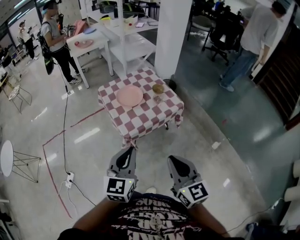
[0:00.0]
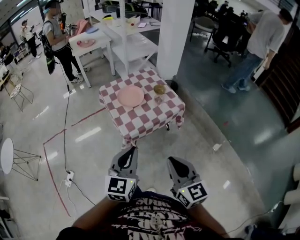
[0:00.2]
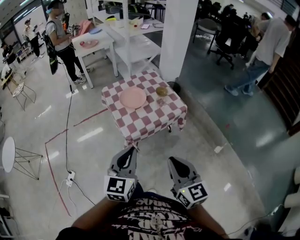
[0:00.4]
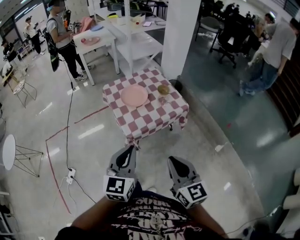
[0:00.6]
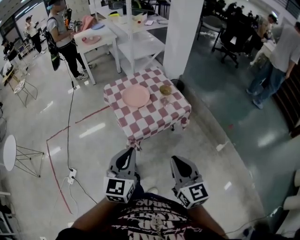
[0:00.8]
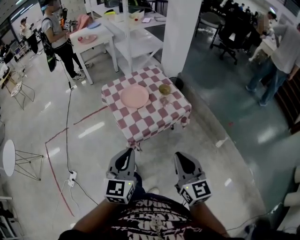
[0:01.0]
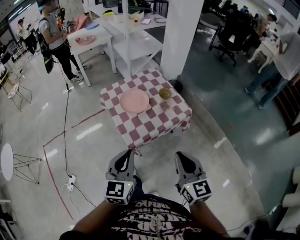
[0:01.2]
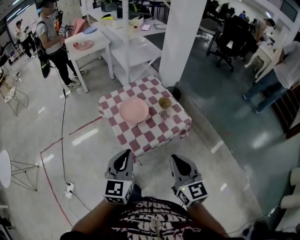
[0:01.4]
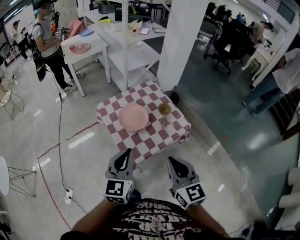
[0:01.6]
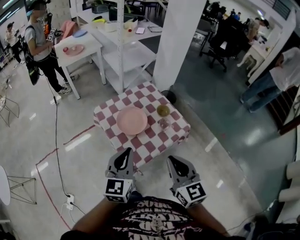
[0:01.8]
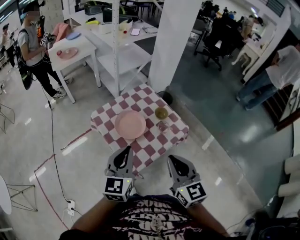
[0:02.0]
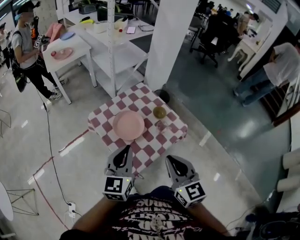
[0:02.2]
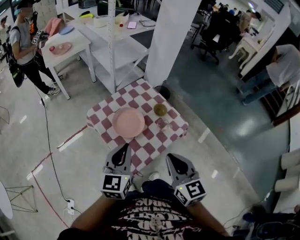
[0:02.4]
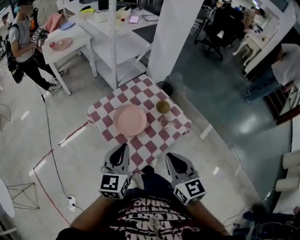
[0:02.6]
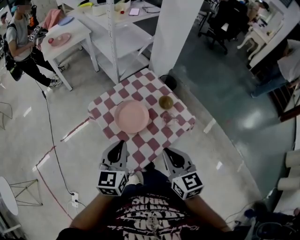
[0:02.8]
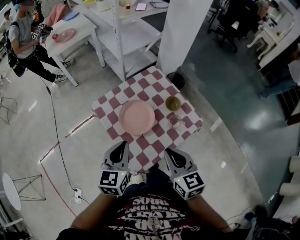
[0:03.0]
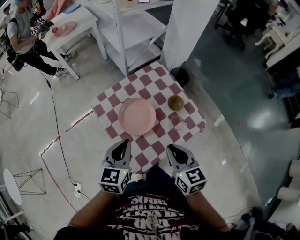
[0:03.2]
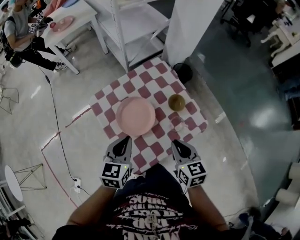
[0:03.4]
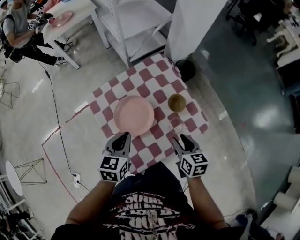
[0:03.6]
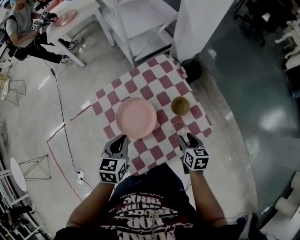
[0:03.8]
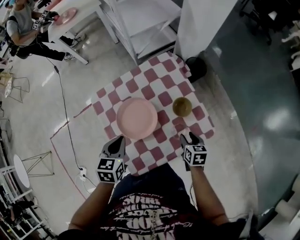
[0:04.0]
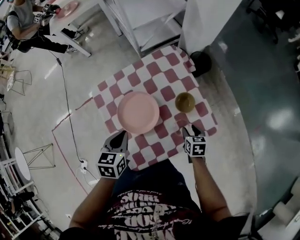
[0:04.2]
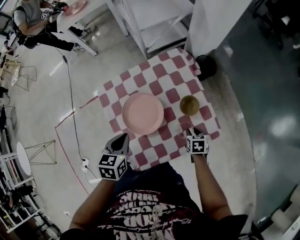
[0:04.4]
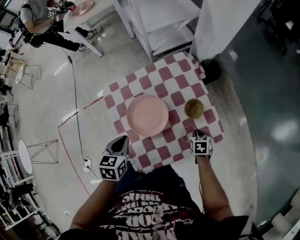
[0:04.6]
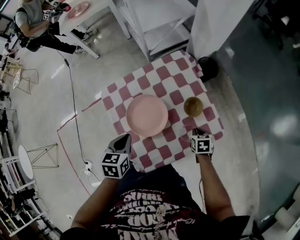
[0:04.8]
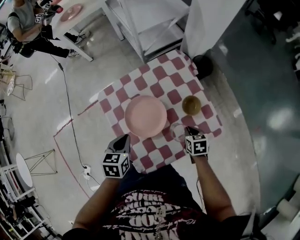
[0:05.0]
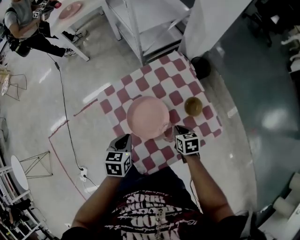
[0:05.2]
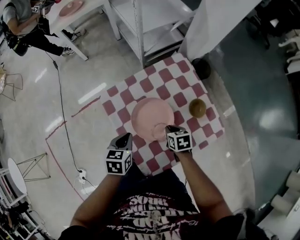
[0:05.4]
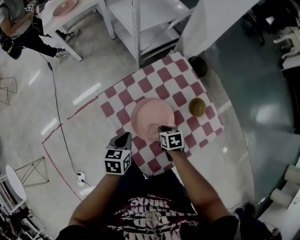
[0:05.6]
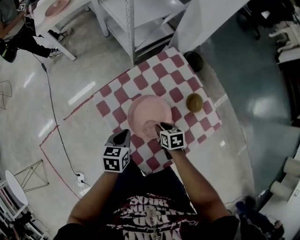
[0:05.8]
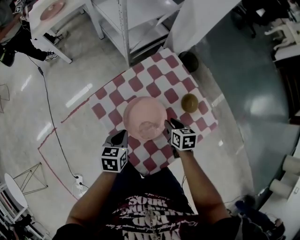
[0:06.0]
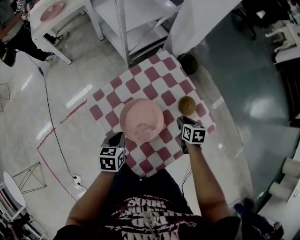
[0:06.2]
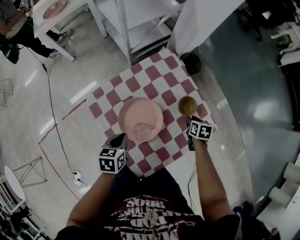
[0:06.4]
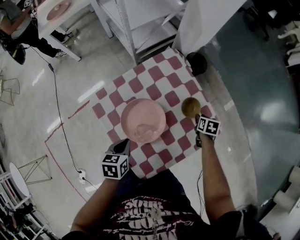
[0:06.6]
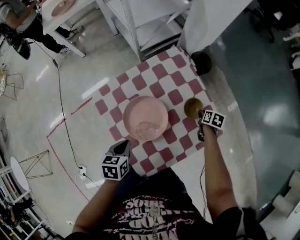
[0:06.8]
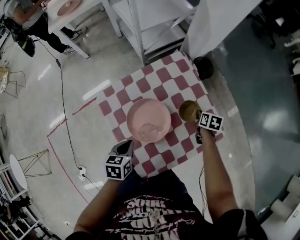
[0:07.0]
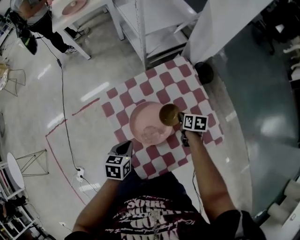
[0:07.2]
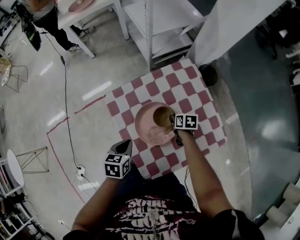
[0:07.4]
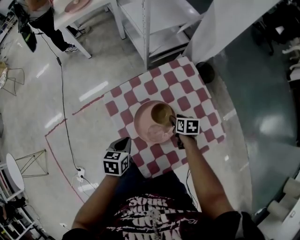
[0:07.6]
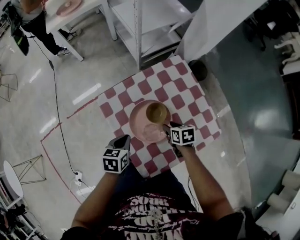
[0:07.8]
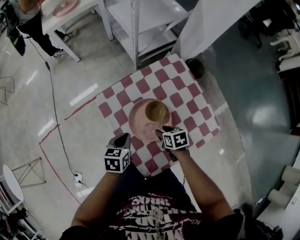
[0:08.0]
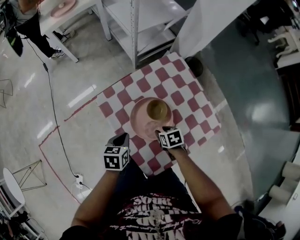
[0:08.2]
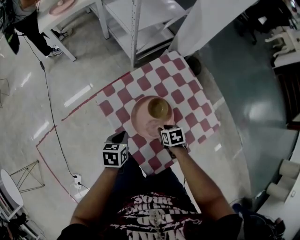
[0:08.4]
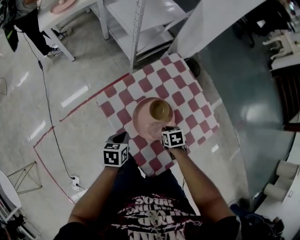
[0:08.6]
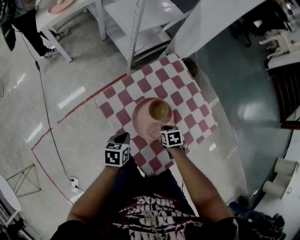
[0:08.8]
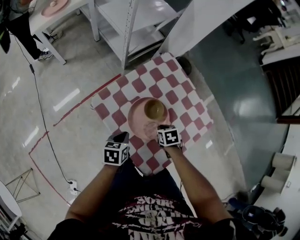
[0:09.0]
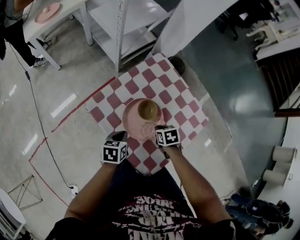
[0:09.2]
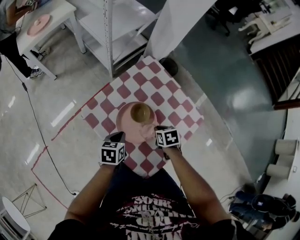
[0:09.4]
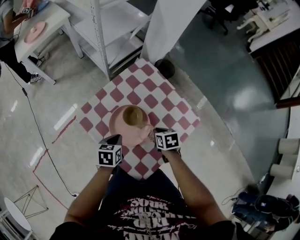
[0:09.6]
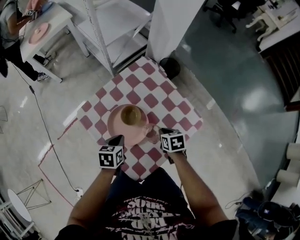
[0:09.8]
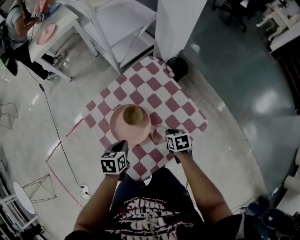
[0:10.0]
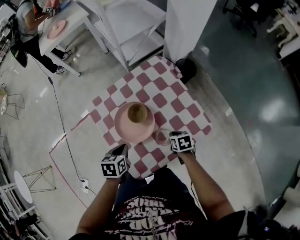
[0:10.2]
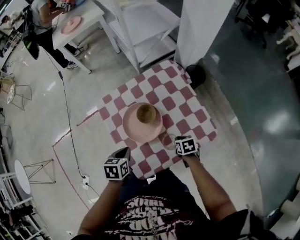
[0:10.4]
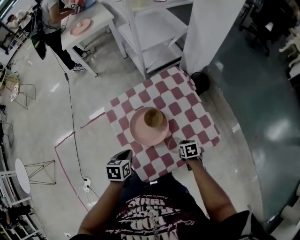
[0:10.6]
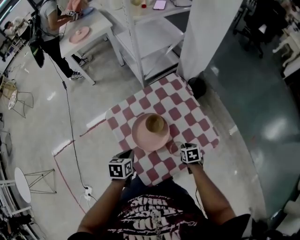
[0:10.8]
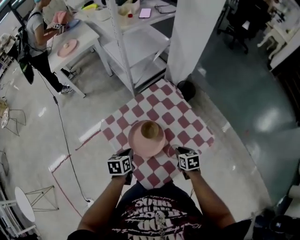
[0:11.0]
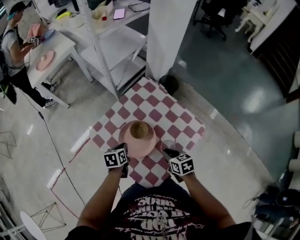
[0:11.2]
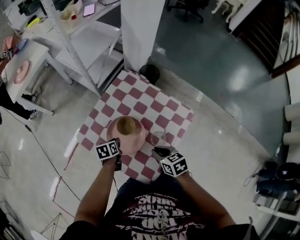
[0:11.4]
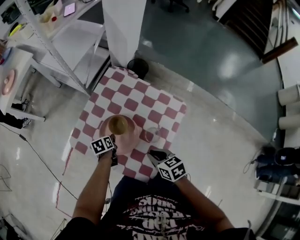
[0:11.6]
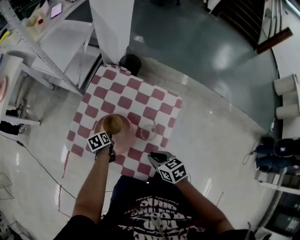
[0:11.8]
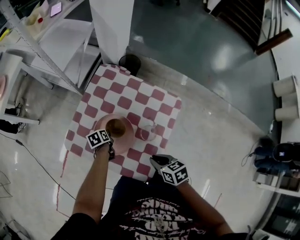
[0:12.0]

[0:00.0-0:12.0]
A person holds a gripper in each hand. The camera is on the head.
0:00.0 to 0:01.6: Both grippers move forward, roughly 20 cm.
0:01.6 to 0:03.0: The grippers both shift forward and downward by approximately 20 cm.
0:03.0 to 0:04.4: The right gripper goes roughly 40 cm downward, to the right and forward, tilts its fingers approximately 40 degrees downward, and opens up. Meanwhile the left gripper heads downward and forward, covering about 15 cm, and changes its angle by approximately 30 degrees.
0:04.4 to 0:06.0: The left gripper is displaced downward, to the left and forward by about 10 cm. Meanwhile the right gripper travels to the left and upward by some 20 cm, and closes, then reopens.
0:06.0 to 0:07.6: The right gripper moves downward, some 5 cm, and closes and opens again.
0:07.6 to 0:09.0: The right gripper moves about 10 cm, and closes up.
0:09.0 to 0:10.4: The left gripper moves roughly 15 cm, while the right gripper ends up about 15 cm from where it was.
0:10.4 to 0:12.0: The left gripper ends up about 25 cm from where it was, turns by about 20 degrees, and opens, then closes once more, while the right gripper shifts by about 20 cm, and turns by roughly 30 degrees.

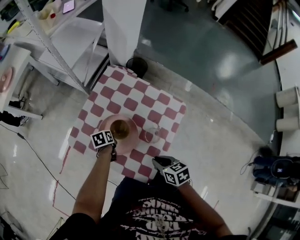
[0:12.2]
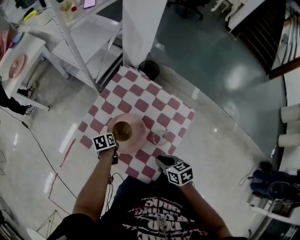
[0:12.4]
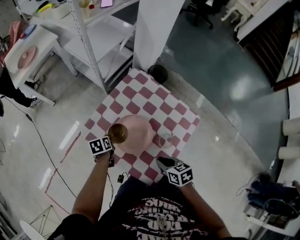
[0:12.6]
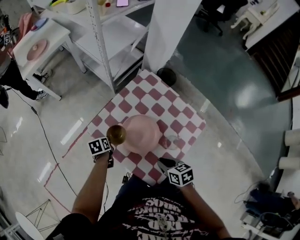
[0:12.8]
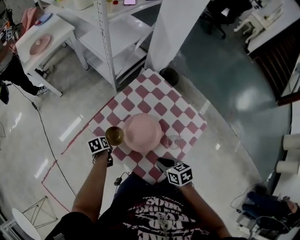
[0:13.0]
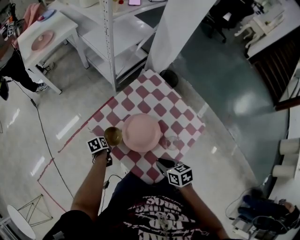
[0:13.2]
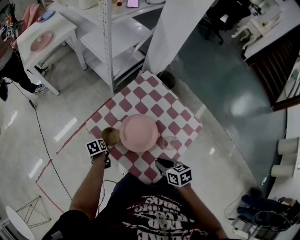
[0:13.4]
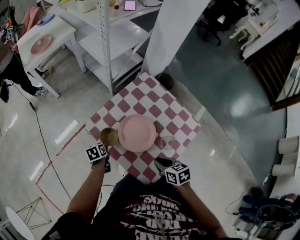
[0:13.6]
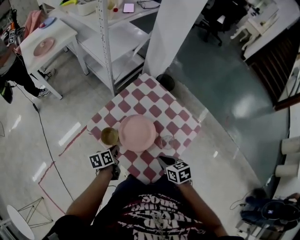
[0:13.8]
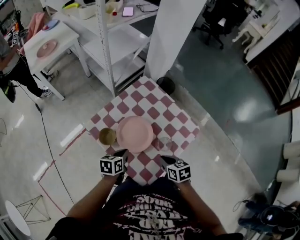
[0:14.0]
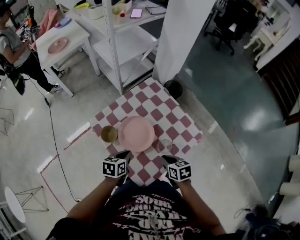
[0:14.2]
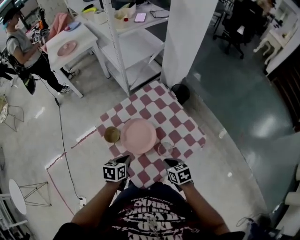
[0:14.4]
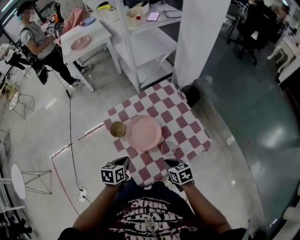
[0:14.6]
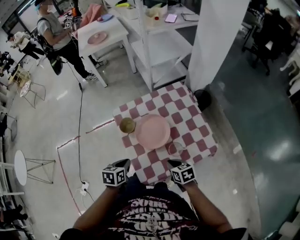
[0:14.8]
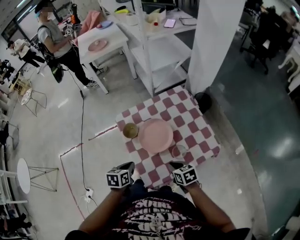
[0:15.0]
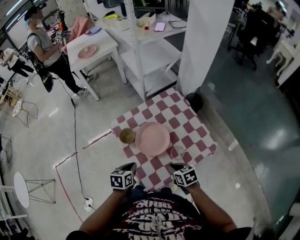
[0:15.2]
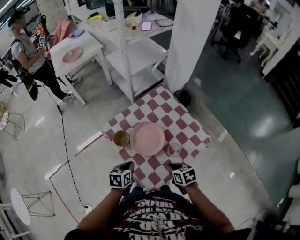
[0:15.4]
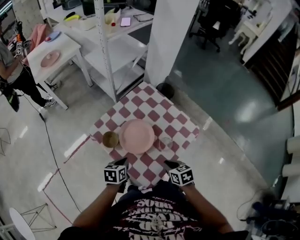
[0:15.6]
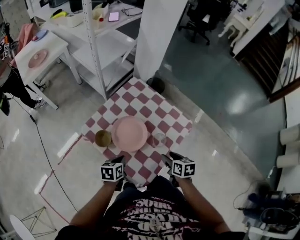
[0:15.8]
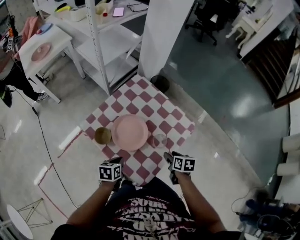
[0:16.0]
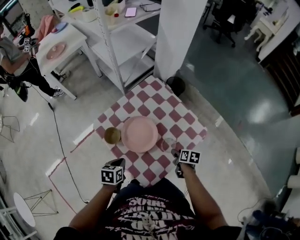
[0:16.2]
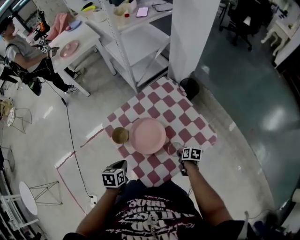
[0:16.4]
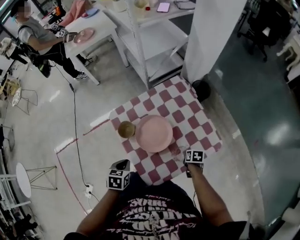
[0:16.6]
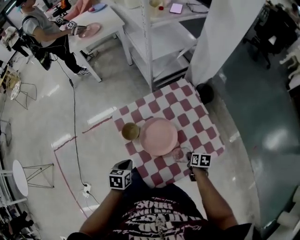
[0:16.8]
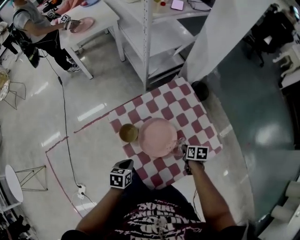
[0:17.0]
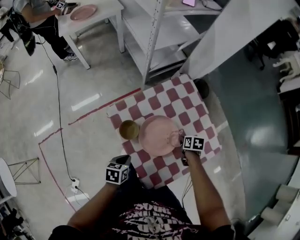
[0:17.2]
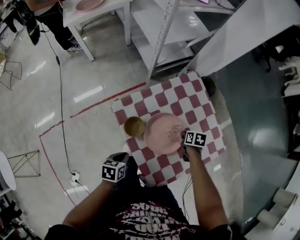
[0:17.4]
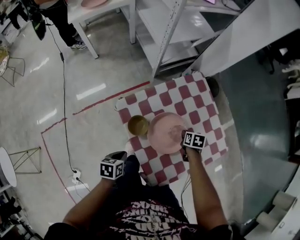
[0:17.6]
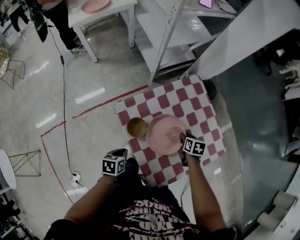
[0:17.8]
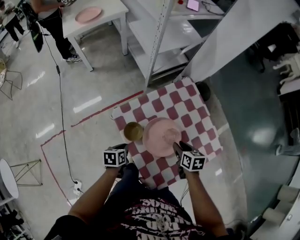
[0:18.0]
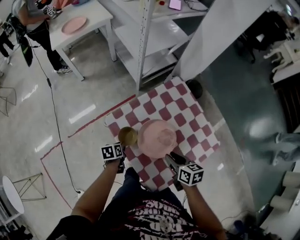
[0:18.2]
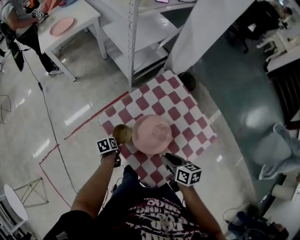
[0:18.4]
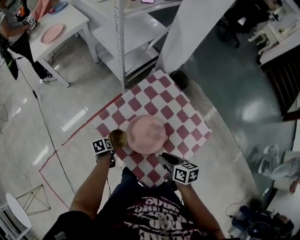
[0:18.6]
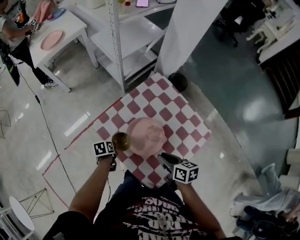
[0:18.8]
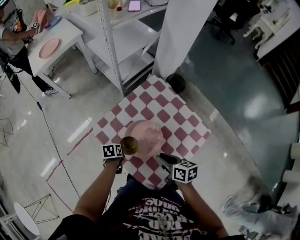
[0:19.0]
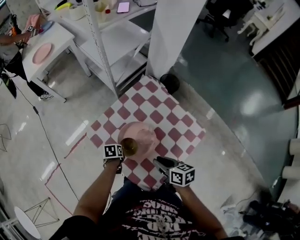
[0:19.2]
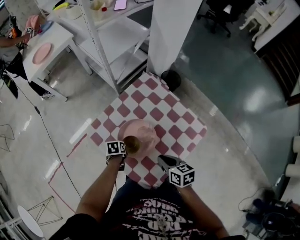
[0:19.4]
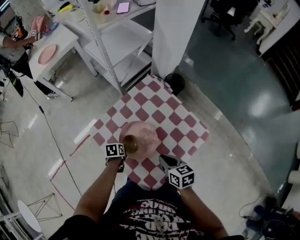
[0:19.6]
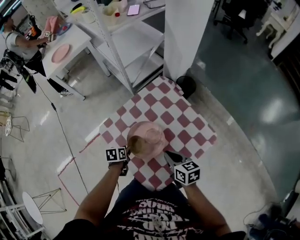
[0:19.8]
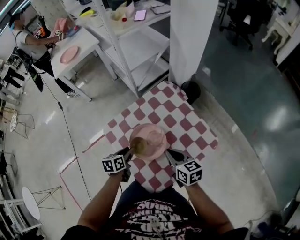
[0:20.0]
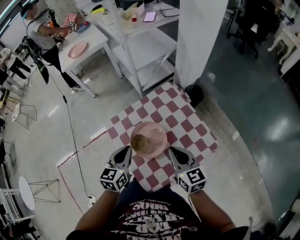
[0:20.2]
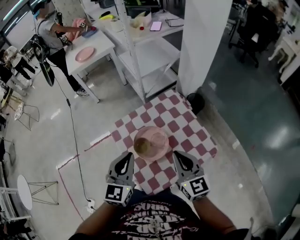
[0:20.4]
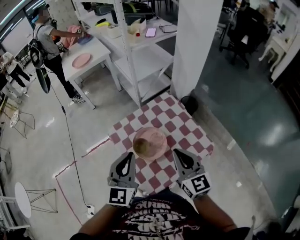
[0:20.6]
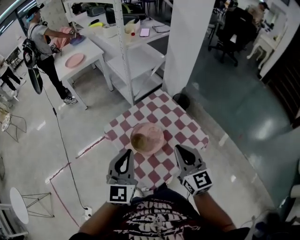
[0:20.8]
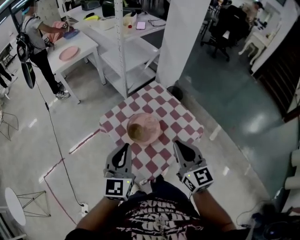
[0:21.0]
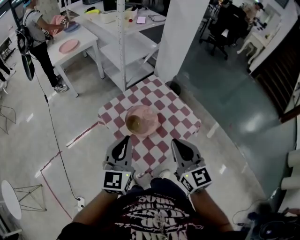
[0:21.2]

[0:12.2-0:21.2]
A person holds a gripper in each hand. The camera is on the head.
0:12.2 to 0:13.8: The left gripper heads to the left, upward and backward, covering approximately 15 cm, turns by approximately 30 degrees, and opens and closes again.
0:13.8 to 0:15.2: The right gripper rotates some 20 degrees. Meanwhile the left gripper moves roughly 15 cm, and changes its angle by roughly 20 degrees.
0:15.2 to 0:16.6: The right gripper travels downward by about 15 cm, turns by some 40 degrees, and opens, then closes once more.
0:16.6 to 0:18.2: The right gripper goes some 25 cm to the left and upward, rotates about 30 degrees, and opens up. The left gripper is displaced downward, forward and to the left by about 20 cm, rotates roughly 30 degrees, and opens its fingers.
0:18.2 to 0:19.8: The grippers both shift to the right by approximately 10 cm. The right gripper closes, while the left gripper closes and opens again.
0:19.8 to 0:21.2: The grippers both shift upward and backward by some 35 cm. The right gripper rotates approximately 40 degrees. The left gripper tips its fingers upward by some 60 degrees, and closes up.

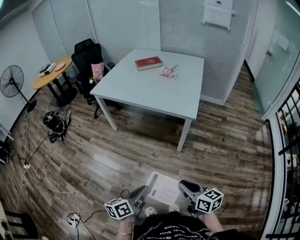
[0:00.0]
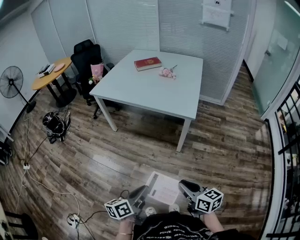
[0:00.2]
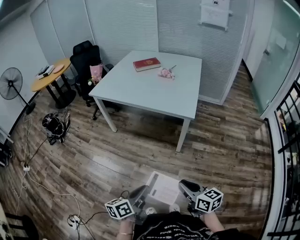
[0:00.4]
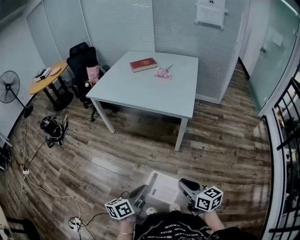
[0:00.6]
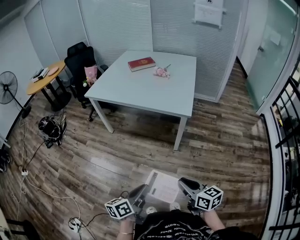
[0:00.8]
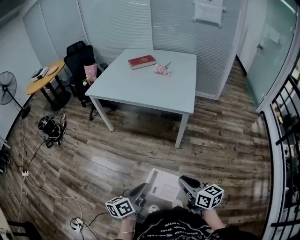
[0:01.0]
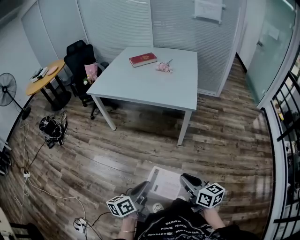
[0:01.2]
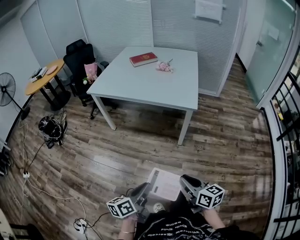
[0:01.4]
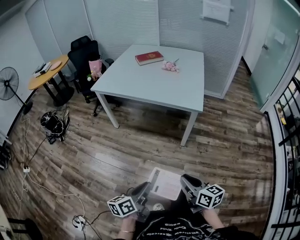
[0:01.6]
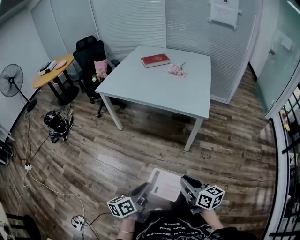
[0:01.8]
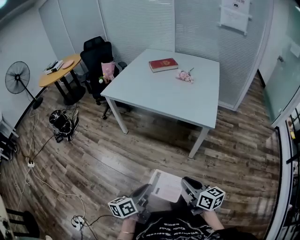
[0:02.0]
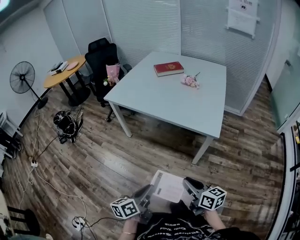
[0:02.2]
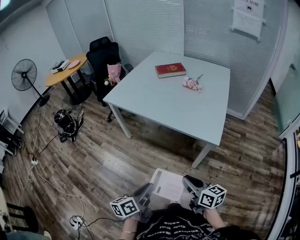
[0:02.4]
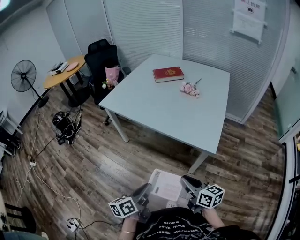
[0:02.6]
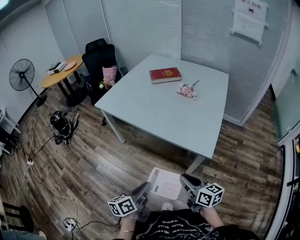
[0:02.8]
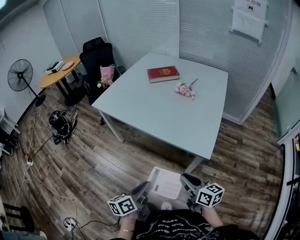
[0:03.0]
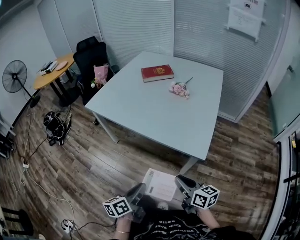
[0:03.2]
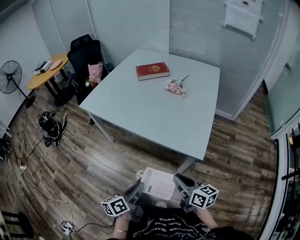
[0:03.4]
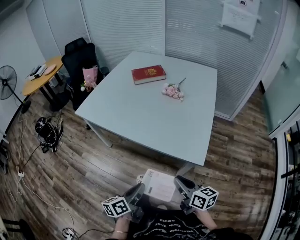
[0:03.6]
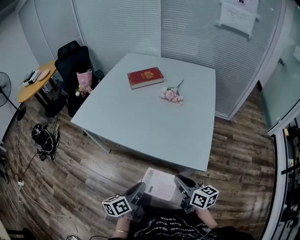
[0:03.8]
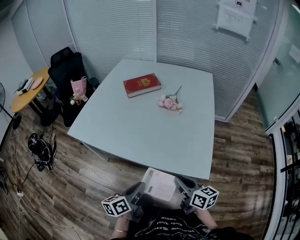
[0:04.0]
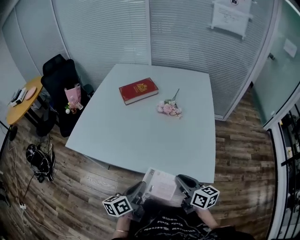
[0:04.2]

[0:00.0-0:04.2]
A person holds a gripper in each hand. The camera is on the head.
0:00.0 to 0:01.4: Both grippers travel together to the left, some 5 cm.
0:01.4 to 0:02.8: The grippers both shift forward by some 30 cm.
0:02.8 to 0:04.2: Both grippers travel together forward, some 25 cm.
